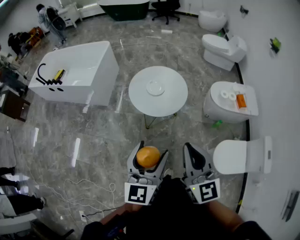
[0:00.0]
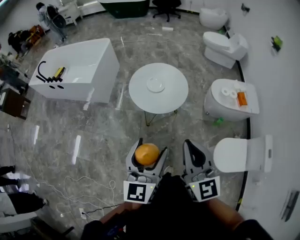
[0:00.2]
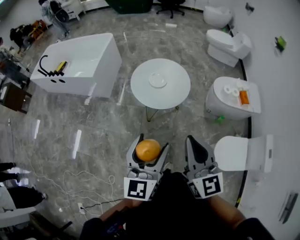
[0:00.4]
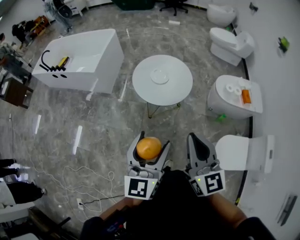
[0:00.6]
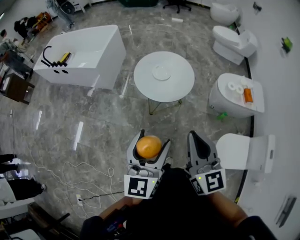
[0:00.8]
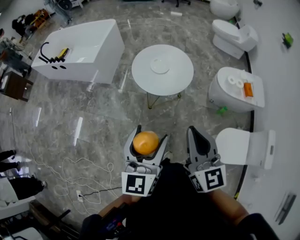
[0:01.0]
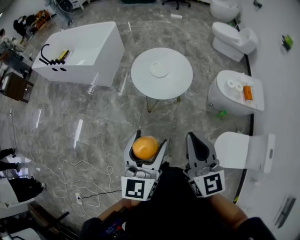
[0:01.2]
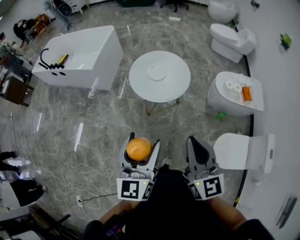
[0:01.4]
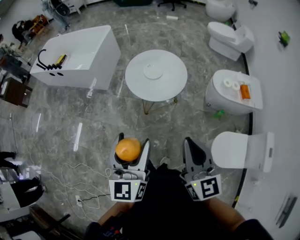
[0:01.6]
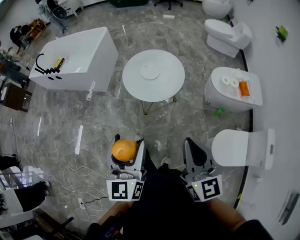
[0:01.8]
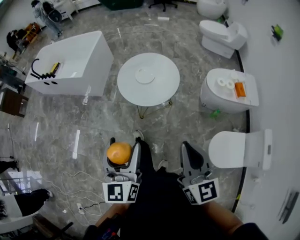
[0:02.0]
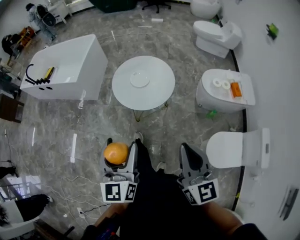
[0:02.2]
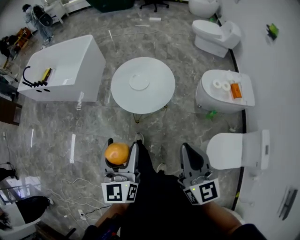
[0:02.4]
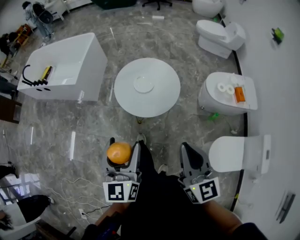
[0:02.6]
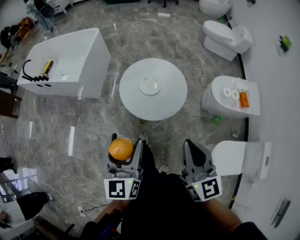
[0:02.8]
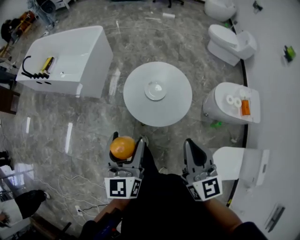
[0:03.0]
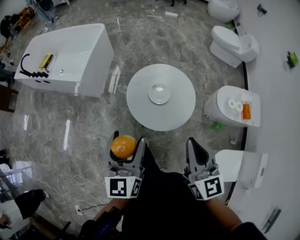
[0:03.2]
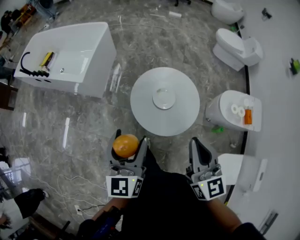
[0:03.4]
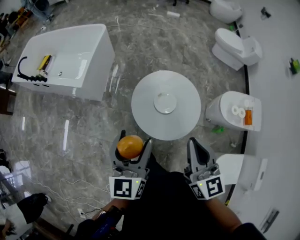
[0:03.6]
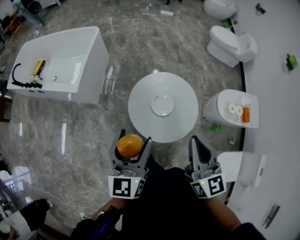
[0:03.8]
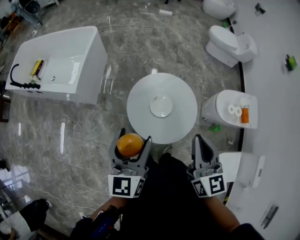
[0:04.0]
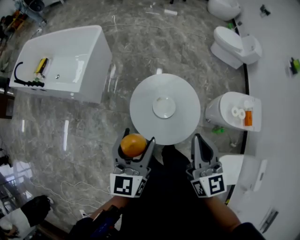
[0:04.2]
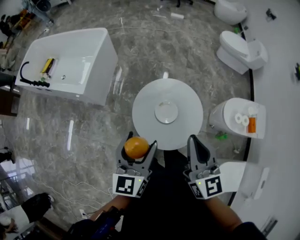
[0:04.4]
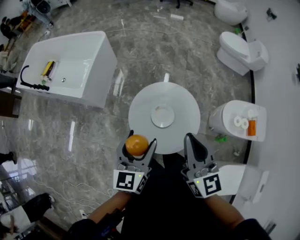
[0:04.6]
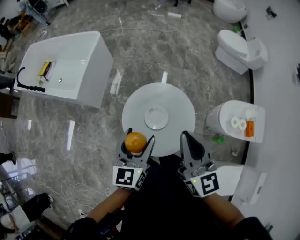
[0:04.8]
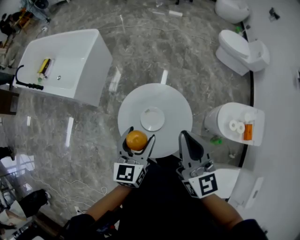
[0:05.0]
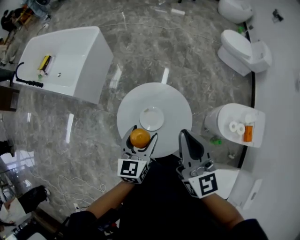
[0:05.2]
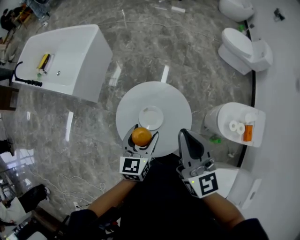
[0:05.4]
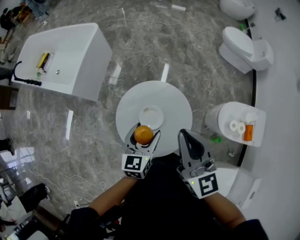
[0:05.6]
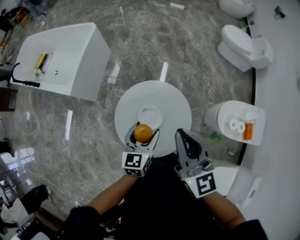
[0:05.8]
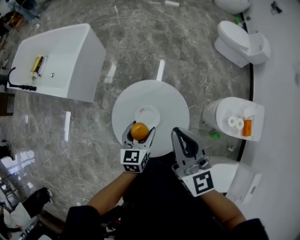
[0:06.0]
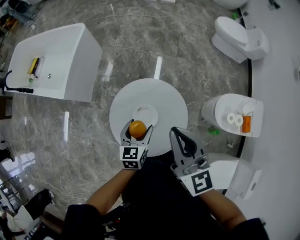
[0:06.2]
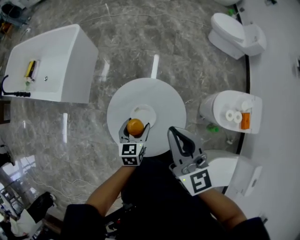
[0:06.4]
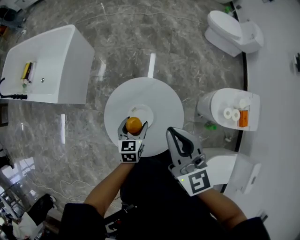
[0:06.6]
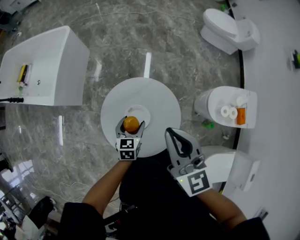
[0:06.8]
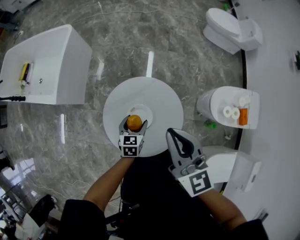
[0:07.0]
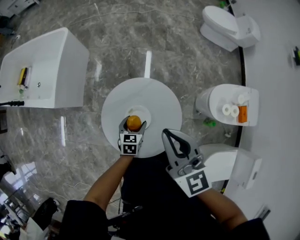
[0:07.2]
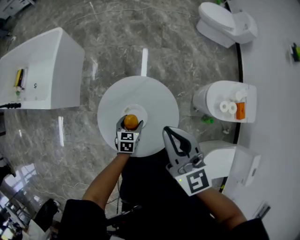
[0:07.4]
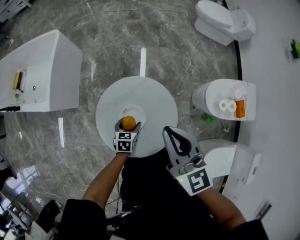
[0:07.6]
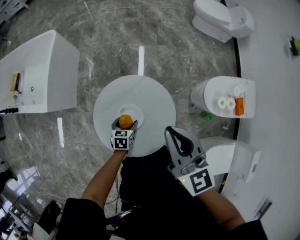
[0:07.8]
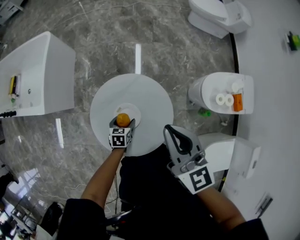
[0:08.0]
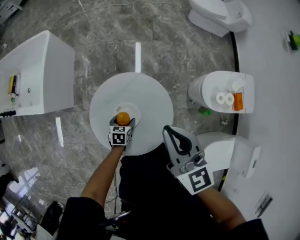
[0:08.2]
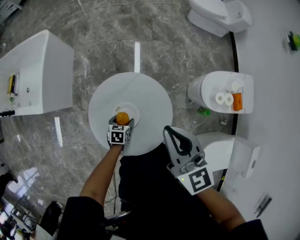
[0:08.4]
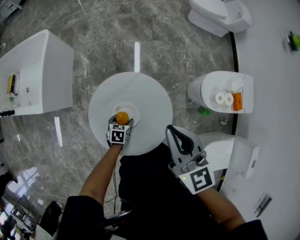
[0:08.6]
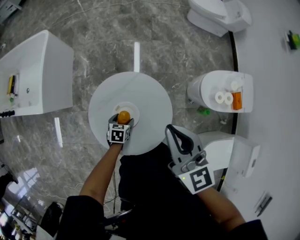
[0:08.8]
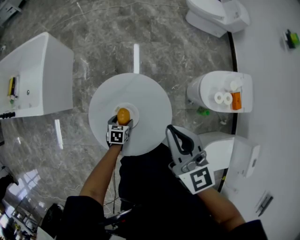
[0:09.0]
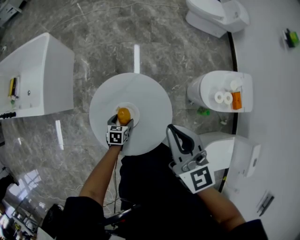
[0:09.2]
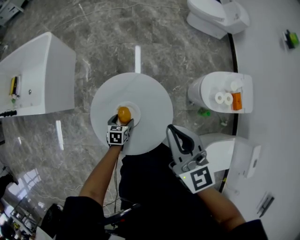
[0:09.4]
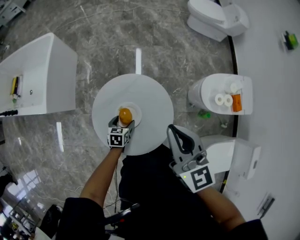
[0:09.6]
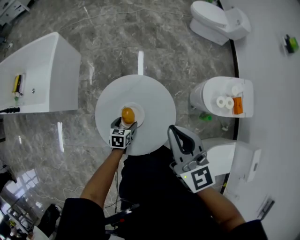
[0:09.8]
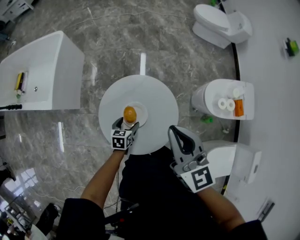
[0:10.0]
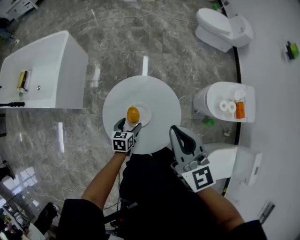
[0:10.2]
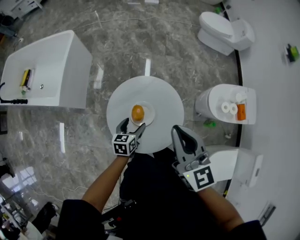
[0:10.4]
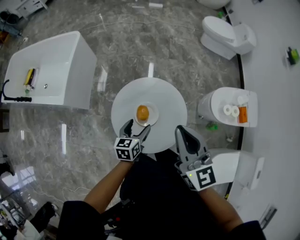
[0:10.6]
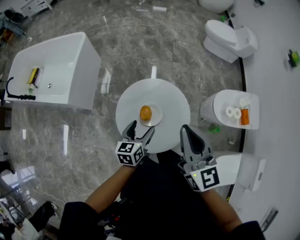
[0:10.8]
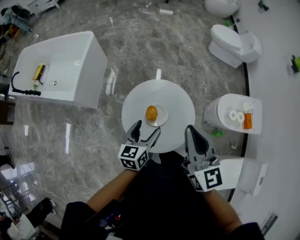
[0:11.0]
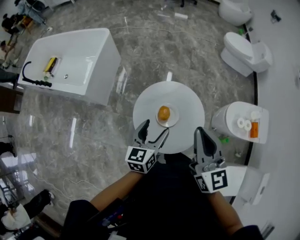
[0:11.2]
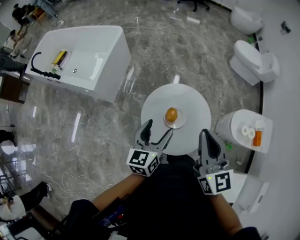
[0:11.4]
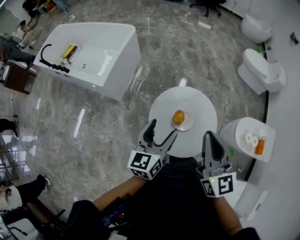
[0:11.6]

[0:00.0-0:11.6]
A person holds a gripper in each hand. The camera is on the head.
0:00.0 to 0:01.4: The right gripper ends up about 5 cm from where it was.
0:01.4 to 0:02.8: Both grippers travel together forward, roughly 15 cm.
0:02.8 to 0:04.4: The two grippers go approximately 25 cm forward.
0:04.4 to 0:05.8: The right gripper is displaced forward and to the right by about 10 cm; the left gripper travels downward, to the right and forward by about 20 cm.
0:05.8 to 0:07.2: The left gripper goes some 20 cm downward, and changes its angle by about 20 degrees.
0:07.2 to 0:08.8: The right gripper goes approximately 5 cm to the right, while the left gripper travels downward by some 10 cm.
0:08.8 to 0:10.2: The left gripper shifts roughly 10 cm upward. The right gripper shifts by about 5 cm.
0:10.2 to 0:11.6: The right gripper shifts some 10 cm to the left and upward. Meanwhile the left gripper goes some 30 cm upward, and tilts its fingers approximately 30 degrees upward.

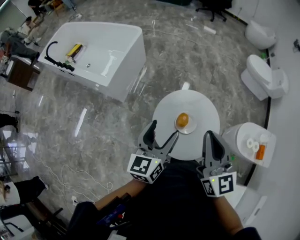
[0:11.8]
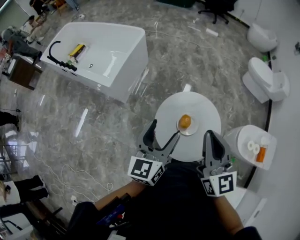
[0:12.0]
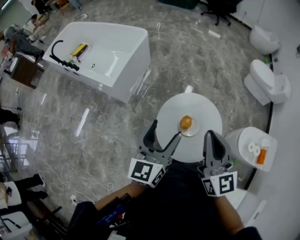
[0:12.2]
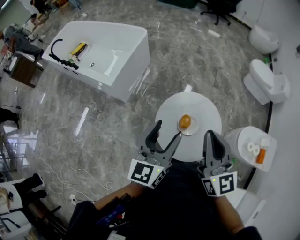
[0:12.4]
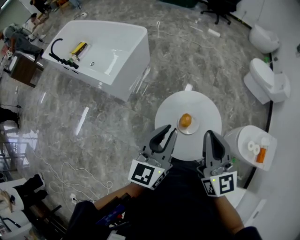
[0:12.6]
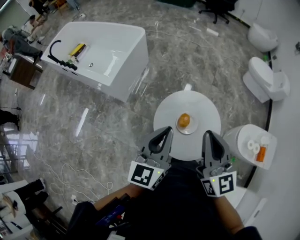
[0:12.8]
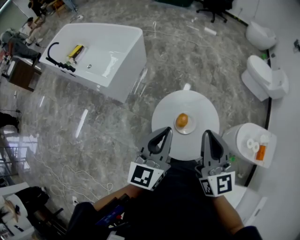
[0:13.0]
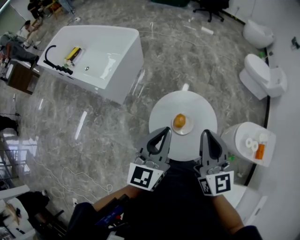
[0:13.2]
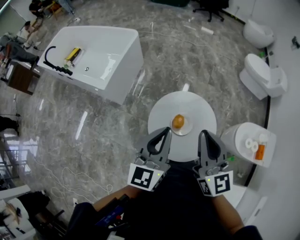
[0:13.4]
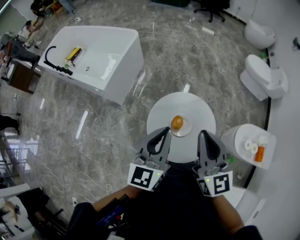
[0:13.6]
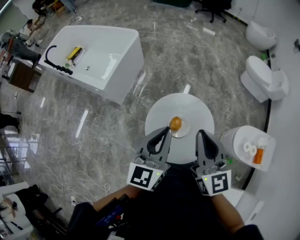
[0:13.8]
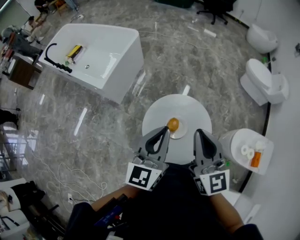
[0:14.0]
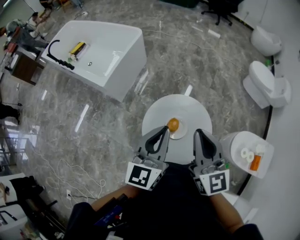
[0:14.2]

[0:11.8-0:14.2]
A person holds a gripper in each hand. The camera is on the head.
0:11.8 to 0:13.0: The left gripper changes place by roughly 5 cm, and closes up.
0:13.0 to 0:14.2: The left gripper heads to the right, covering approximately 5 cm, while the right gripper changes place by approximately 5 cm.

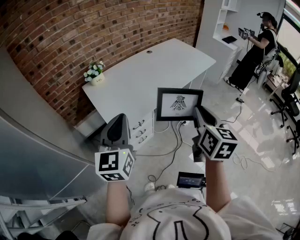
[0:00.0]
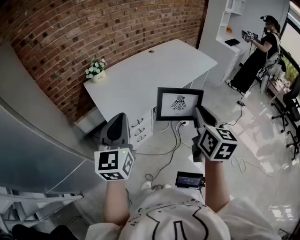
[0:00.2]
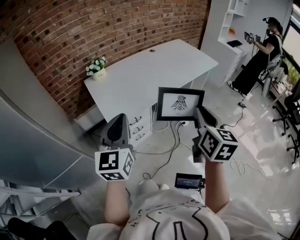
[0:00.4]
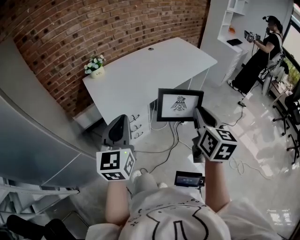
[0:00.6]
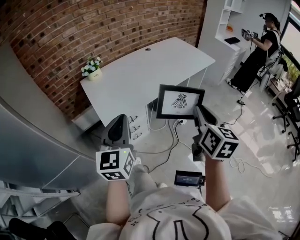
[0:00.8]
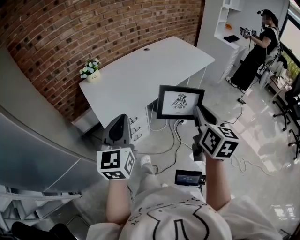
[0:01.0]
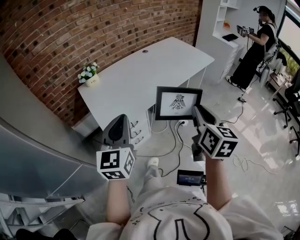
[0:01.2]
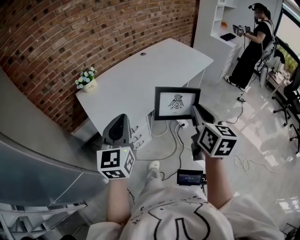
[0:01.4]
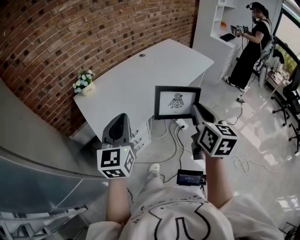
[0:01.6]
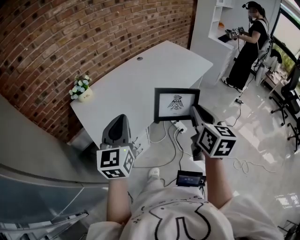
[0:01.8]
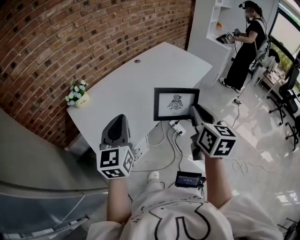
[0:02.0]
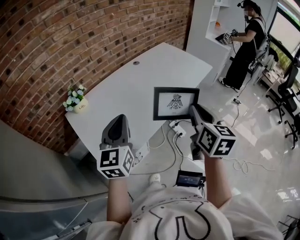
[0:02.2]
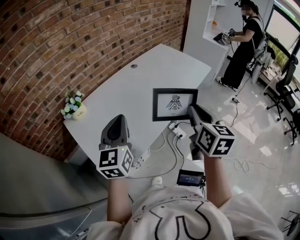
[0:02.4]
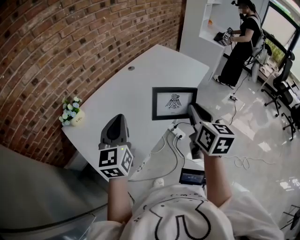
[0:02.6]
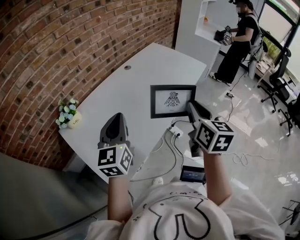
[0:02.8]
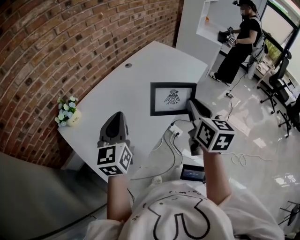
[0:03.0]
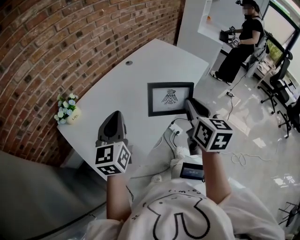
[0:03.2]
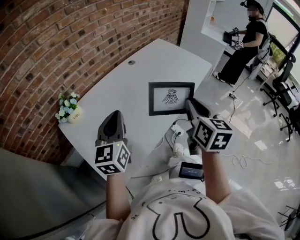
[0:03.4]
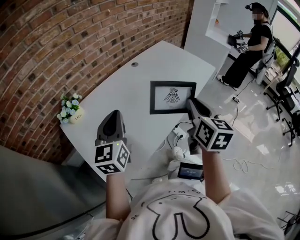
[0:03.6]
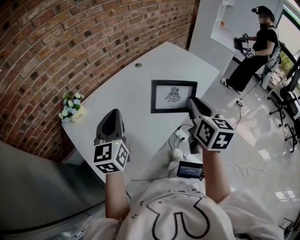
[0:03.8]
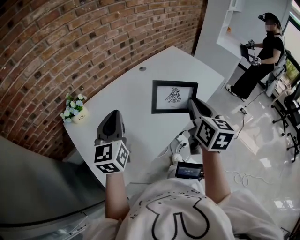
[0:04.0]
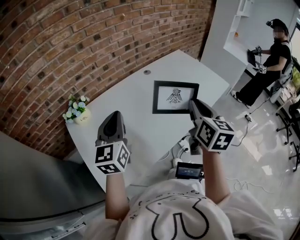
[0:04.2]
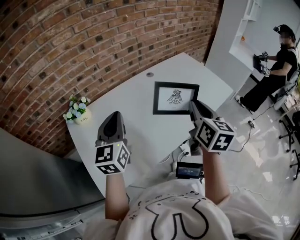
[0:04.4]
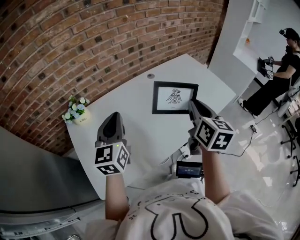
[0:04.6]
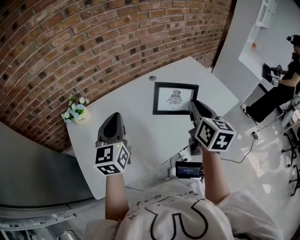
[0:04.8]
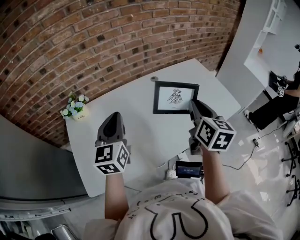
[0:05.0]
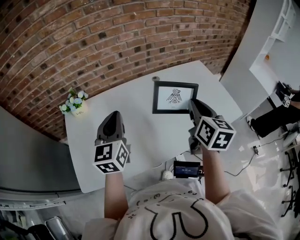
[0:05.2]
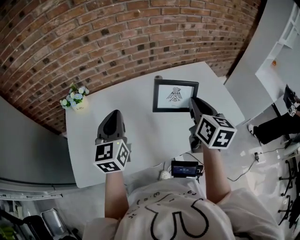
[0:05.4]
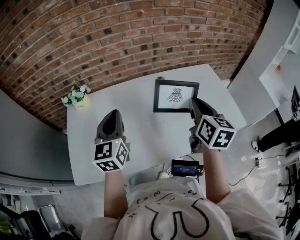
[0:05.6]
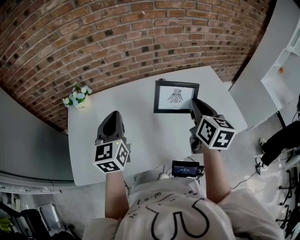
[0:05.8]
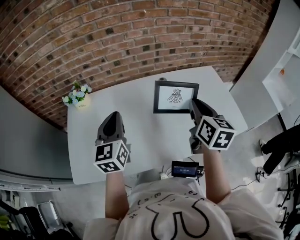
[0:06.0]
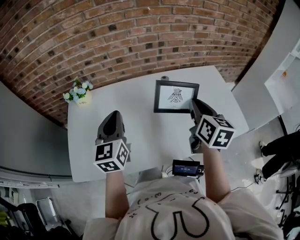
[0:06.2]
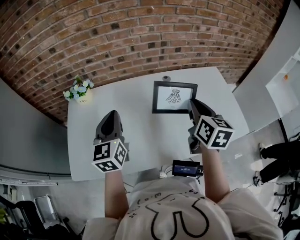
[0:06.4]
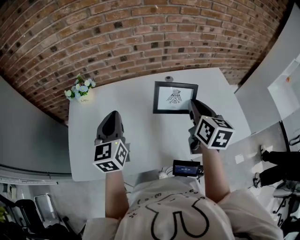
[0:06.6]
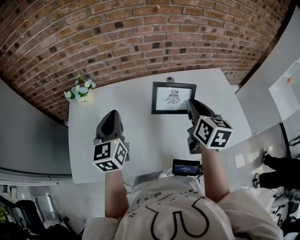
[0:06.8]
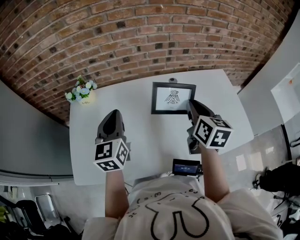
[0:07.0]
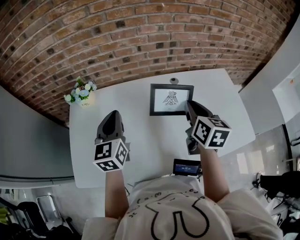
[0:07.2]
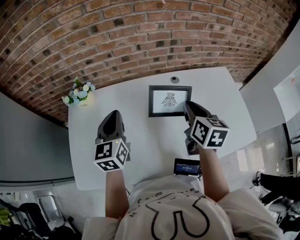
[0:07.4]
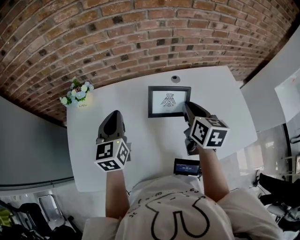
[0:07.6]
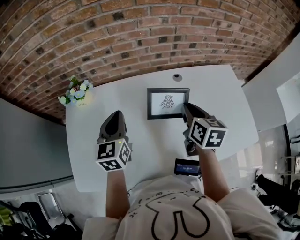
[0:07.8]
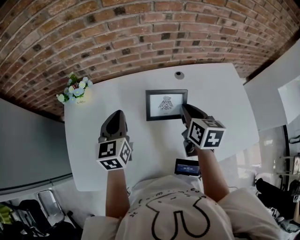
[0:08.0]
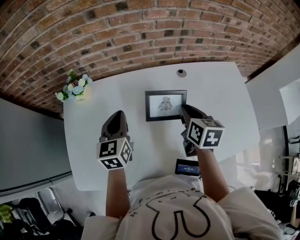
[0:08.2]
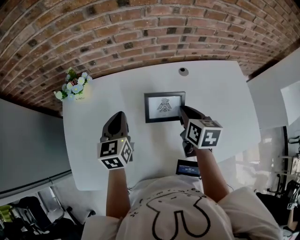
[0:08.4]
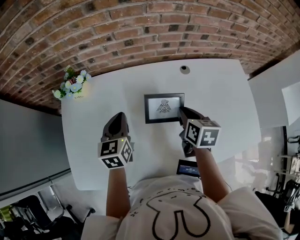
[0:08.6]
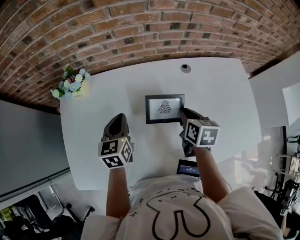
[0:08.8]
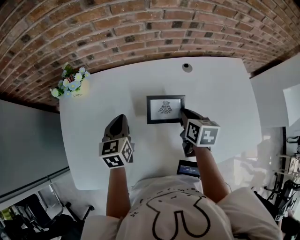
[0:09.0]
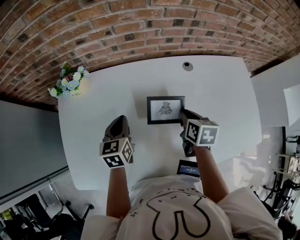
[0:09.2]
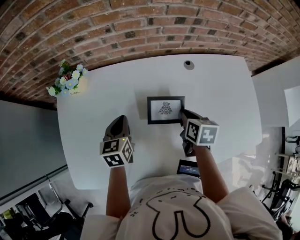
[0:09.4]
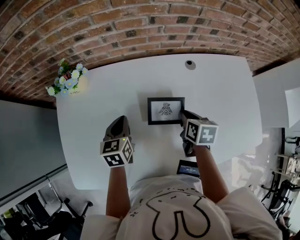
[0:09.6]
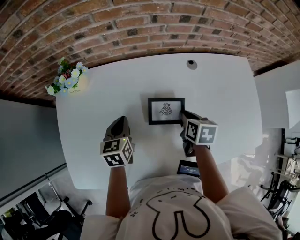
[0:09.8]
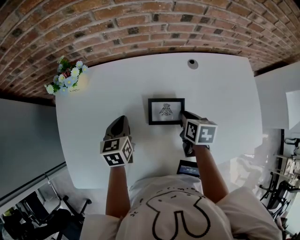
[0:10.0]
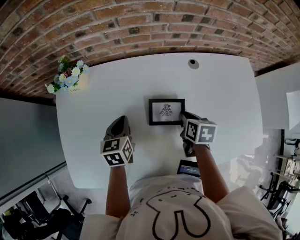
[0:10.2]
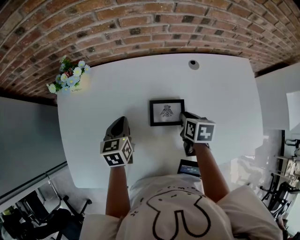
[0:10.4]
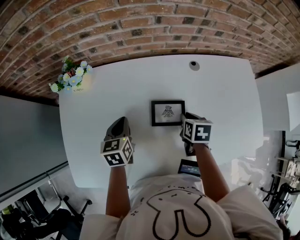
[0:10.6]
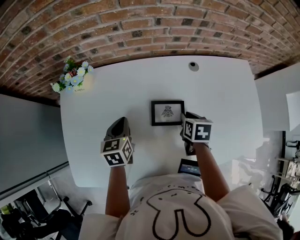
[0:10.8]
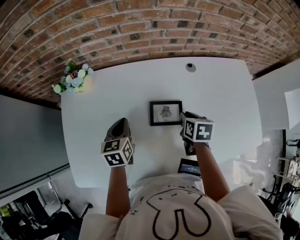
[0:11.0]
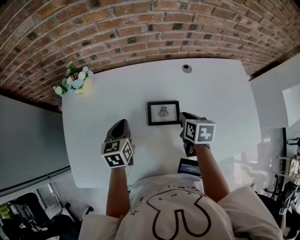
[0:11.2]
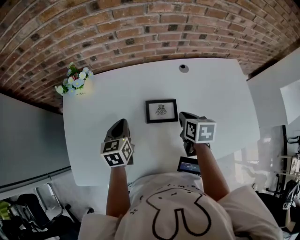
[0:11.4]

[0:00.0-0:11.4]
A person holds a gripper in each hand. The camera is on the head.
0:00.0 to 0:01.4: The right gripper is displaced to the right by some 5 cm. Meanwhile the left gripper heads to the right and forward, covering approximately 10 cm.
0:01.4 to 0:02.8: Both grippers travel together forward, some 25 cm.
0:02.8 to 0:04.2: The right gripper moves forward, approximately 10 cm, while the left gripper goes roughly 5 cm forward.
0:04.2 to 0:05.6: The left gripper travels to the right and forward by approximately 10 cm, and swivels some 20 degrees; the right gripper goes some 20 cm forward and to the right, and changes its angle by roughly 20 degrees.
0:05.6 to 0:07.2: The left gripper shifts some 5 cm forward. Meanwhile the right gripper goes roughly 10 cm forward and to the left.
0:07.2 to 0:08.6: The left gripper heads downward and forward, covering approximately 15 cm, while the right gripper goes approximately 15 cm downward, and changes its angle by some 20 degrees.
0:08.6 to 0:10.0: Both grippers move downward, approximately 10 cm.
0:10.0 to 0:11.4: The left gripper changes place by some 5 cm. The right gripper travels upward by approximately 5 cm.
